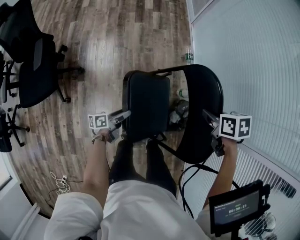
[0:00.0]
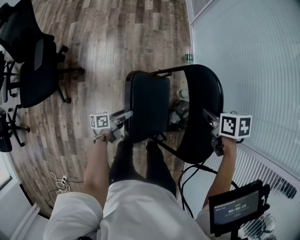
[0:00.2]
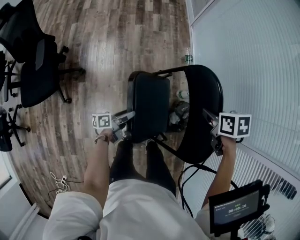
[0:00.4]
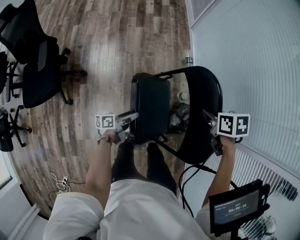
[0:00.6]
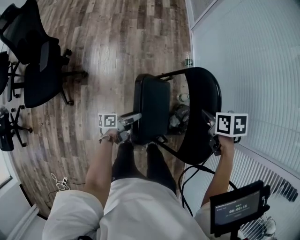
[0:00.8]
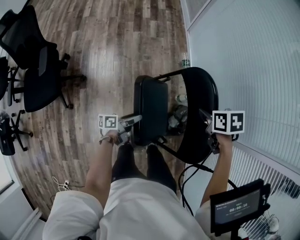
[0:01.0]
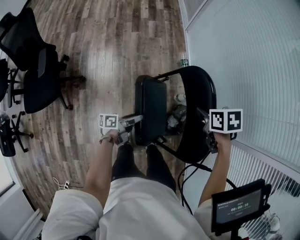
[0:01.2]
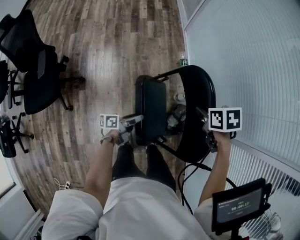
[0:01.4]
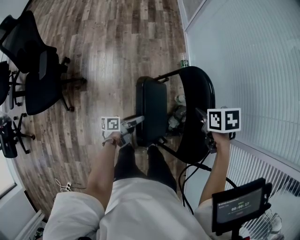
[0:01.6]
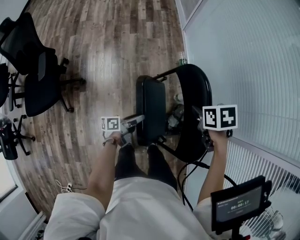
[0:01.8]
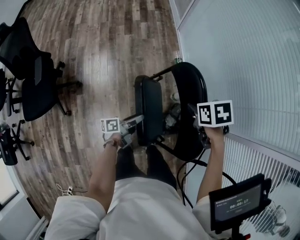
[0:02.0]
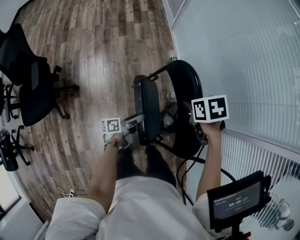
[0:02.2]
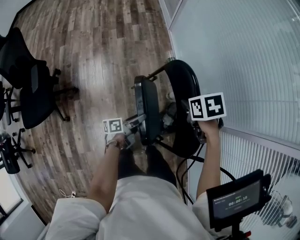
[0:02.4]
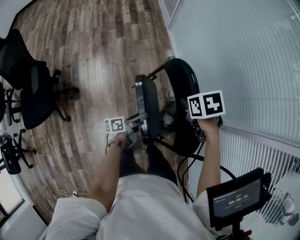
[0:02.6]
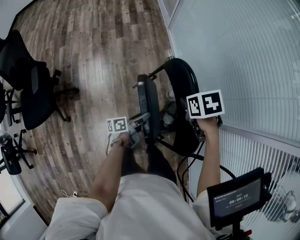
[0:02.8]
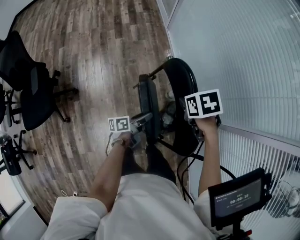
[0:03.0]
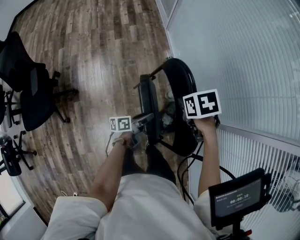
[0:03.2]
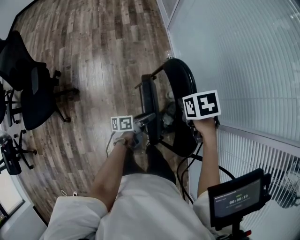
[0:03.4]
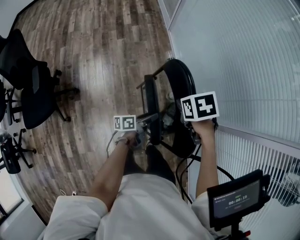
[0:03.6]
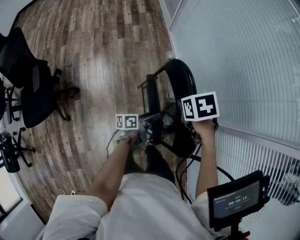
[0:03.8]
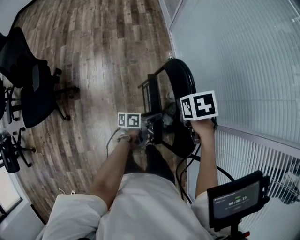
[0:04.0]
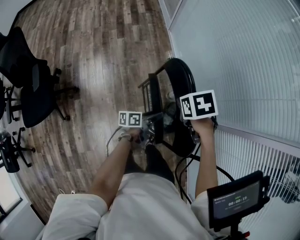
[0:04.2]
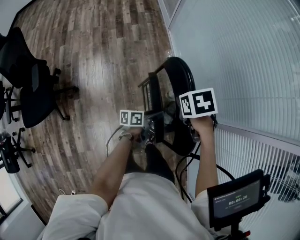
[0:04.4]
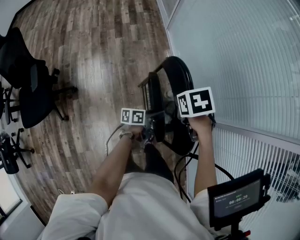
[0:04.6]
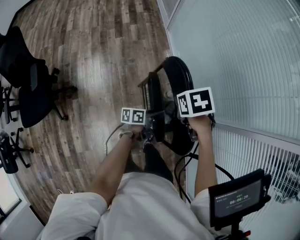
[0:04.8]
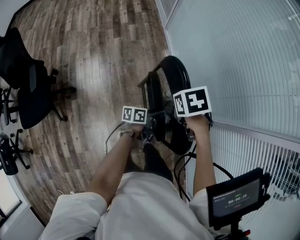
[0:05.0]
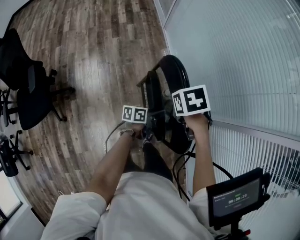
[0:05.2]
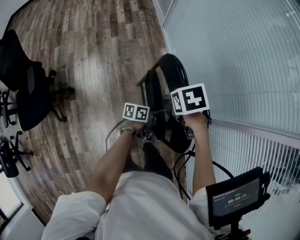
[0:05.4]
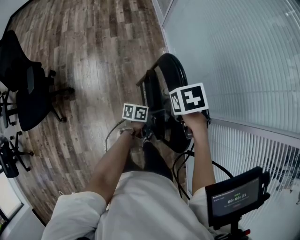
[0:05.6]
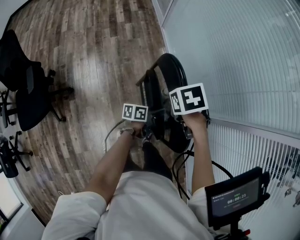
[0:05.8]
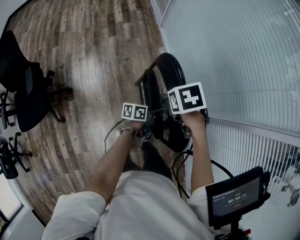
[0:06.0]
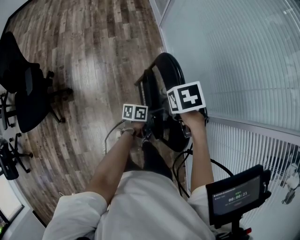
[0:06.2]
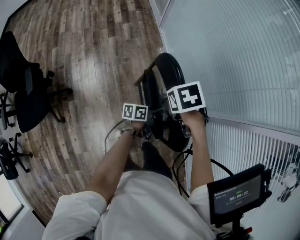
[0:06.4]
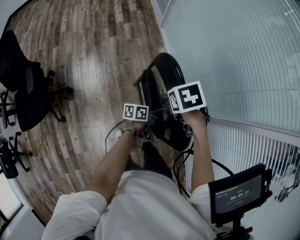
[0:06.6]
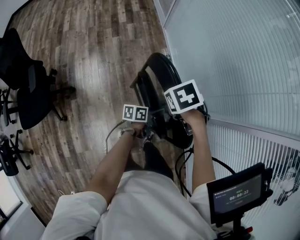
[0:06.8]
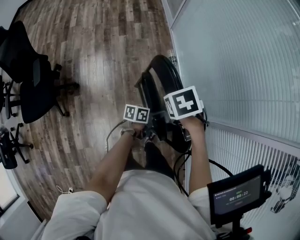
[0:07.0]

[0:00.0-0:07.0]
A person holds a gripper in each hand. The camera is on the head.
0:00.0 to 0:01.4: The left gripper moves to the right and upward, roughly 10 cm.
0:01.4 to 0:02.8: The left gripper is displaced to the right by about 5 cm.
0:02.8 to 0:04.2: The left gripper changes place by roughly 5 cm.
0:04.2 to 0:07.0: The grippers stay close to where they were, moving slightly.

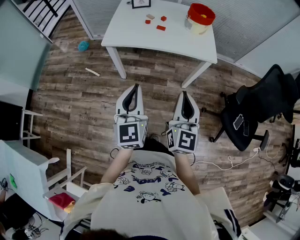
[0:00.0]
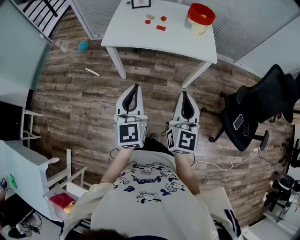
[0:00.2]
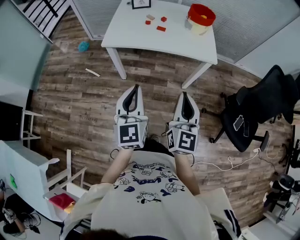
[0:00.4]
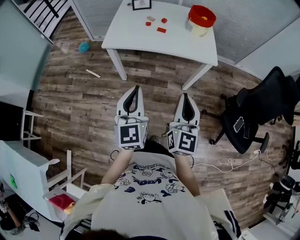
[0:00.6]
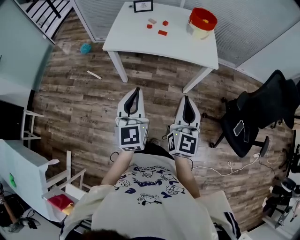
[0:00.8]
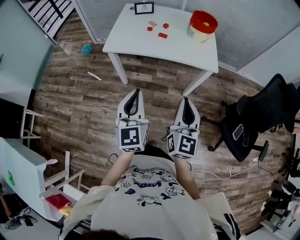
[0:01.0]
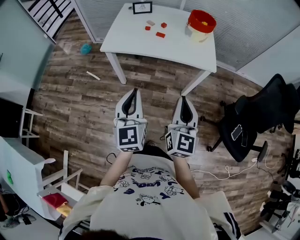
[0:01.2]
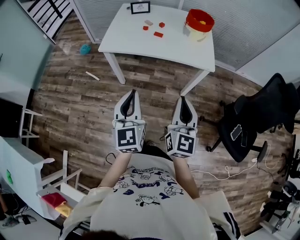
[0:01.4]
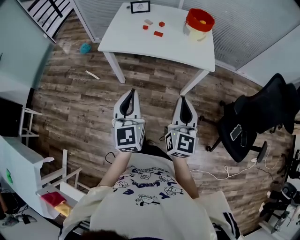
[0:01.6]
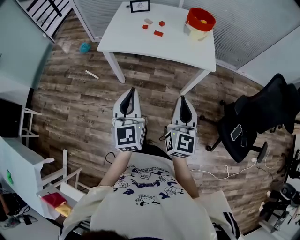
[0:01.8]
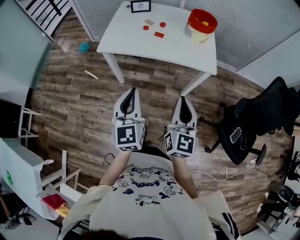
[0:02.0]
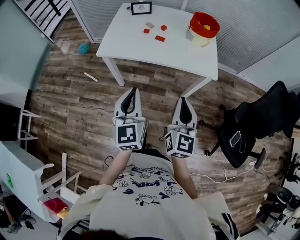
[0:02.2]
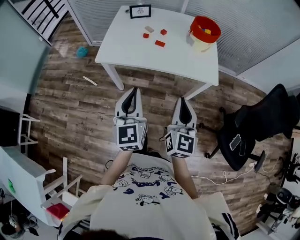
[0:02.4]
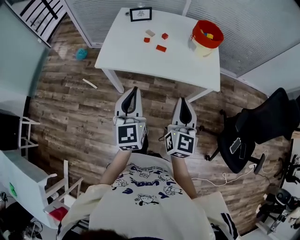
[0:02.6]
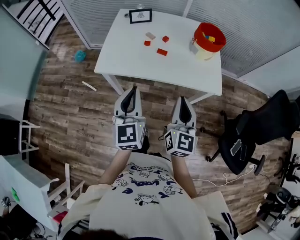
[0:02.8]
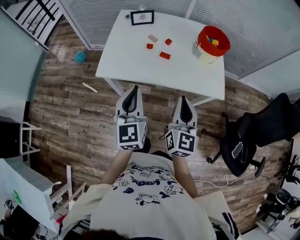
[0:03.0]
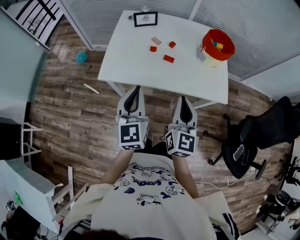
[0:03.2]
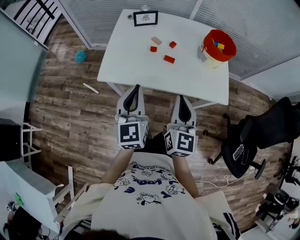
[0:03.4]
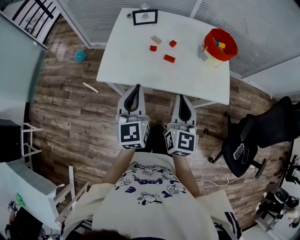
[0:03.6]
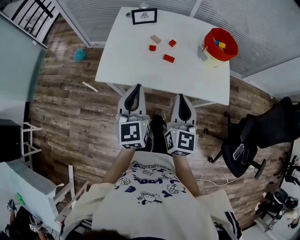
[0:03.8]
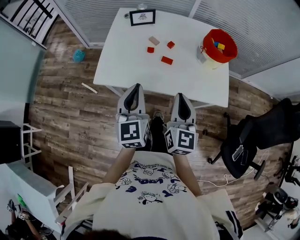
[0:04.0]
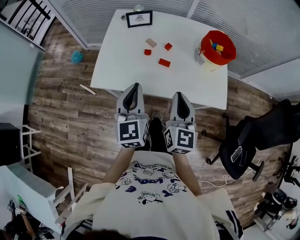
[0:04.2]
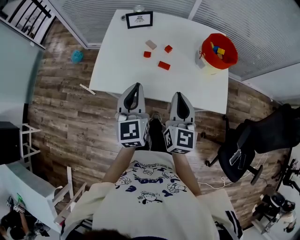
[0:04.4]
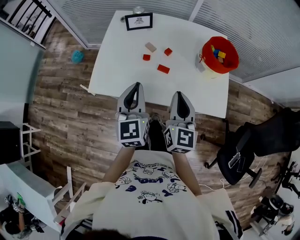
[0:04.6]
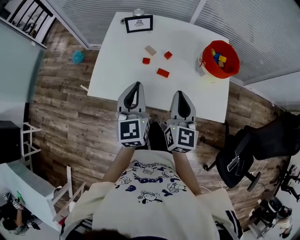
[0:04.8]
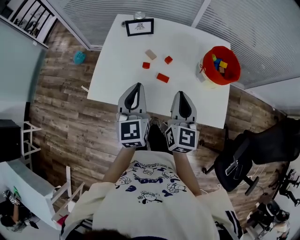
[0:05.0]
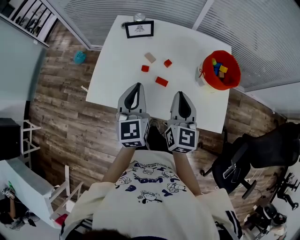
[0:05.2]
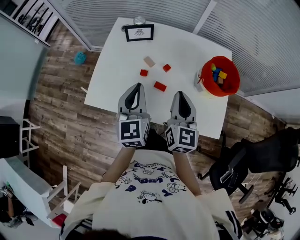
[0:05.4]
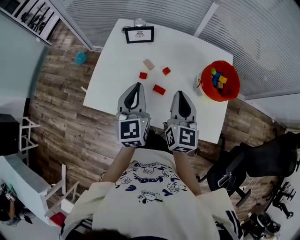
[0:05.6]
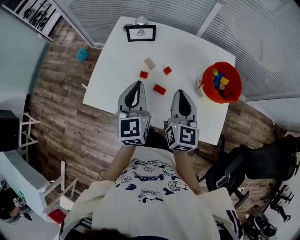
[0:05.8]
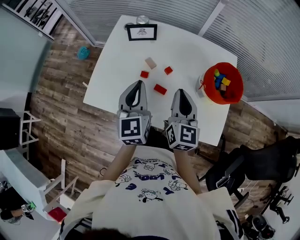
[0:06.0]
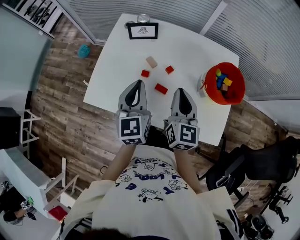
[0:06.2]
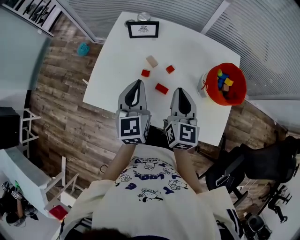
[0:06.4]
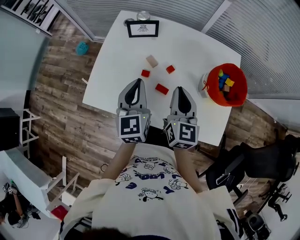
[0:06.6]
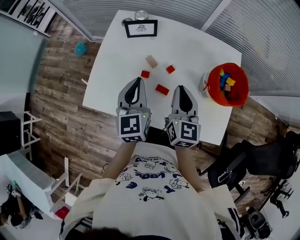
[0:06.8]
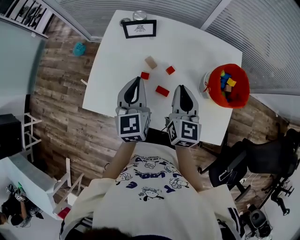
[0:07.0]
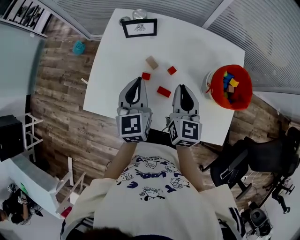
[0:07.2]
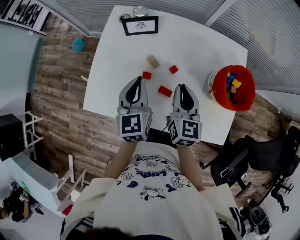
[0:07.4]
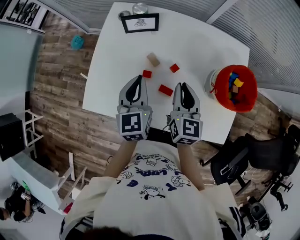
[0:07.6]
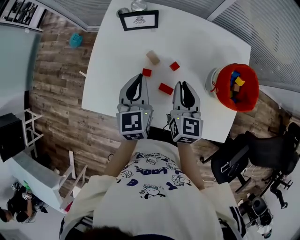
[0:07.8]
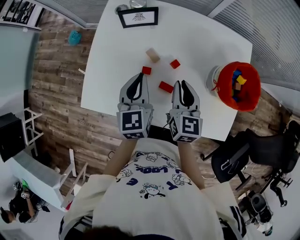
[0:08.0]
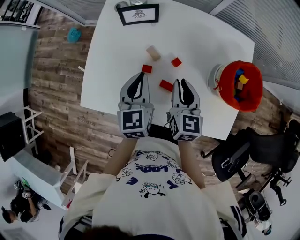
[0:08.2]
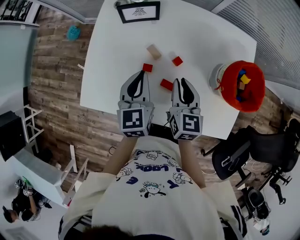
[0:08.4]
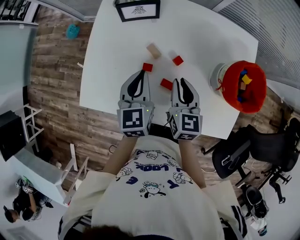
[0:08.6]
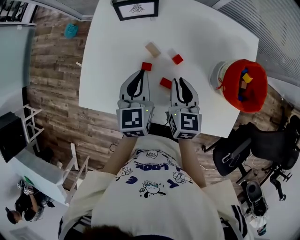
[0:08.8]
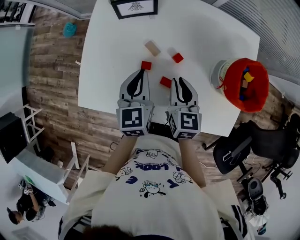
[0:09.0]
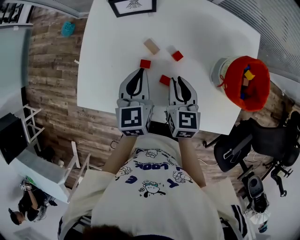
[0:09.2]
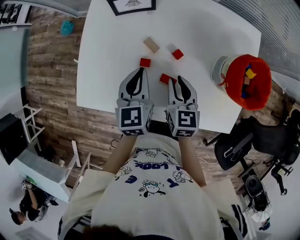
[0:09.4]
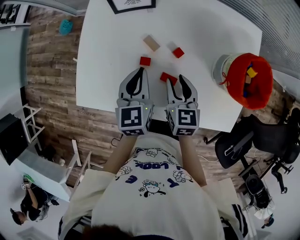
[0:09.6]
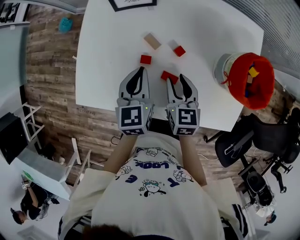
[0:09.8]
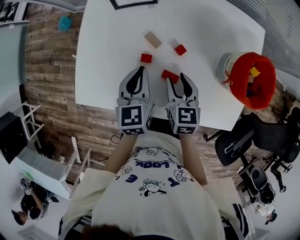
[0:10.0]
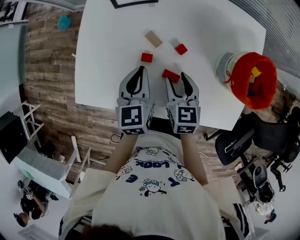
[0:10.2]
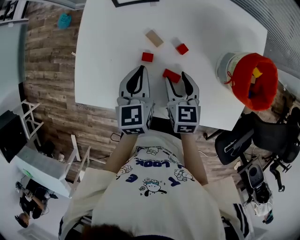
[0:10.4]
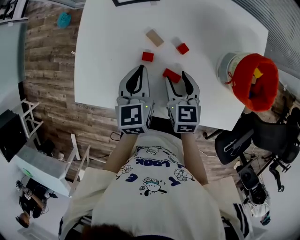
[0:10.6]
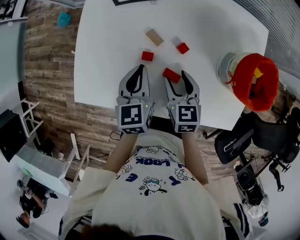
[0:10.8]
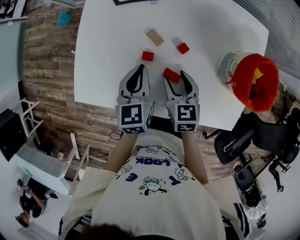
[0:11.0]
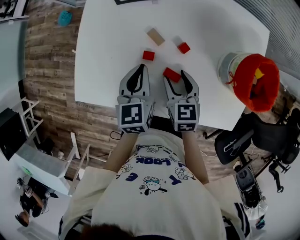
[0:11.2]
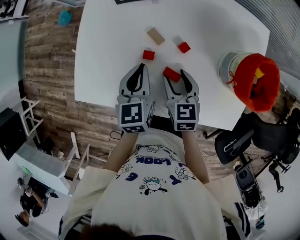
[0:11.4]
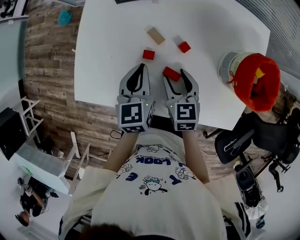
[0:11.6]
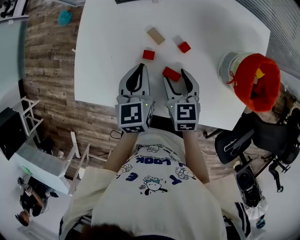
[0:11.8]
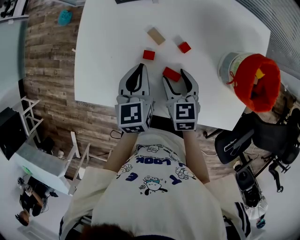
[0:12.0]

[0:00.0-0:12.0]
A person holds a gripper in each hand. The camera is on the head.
0:00.0 to 0:01.6: The right gripper ends up approximately 5 cm from where it was.
0:01.6 to 0:03.0: Both grippers travel together forward, about 20 cm.
0:03.0 to 0:04.4: The two grippers go roughly 10 cm forward.
0:04.4 to 0:06.0: Both grippers move forward, approximately 15 cm.
0:06.0 to 0:07.6: Both grippers move downward and forward, about 10 cm.
0:07.6 to 0:09.0: The grippers both shift downward by some 5 cm.
0:09.0 to 0:10.4: The right gripper opens.
0:10.4 to 0:12.0: The grippers stay close to where they were, moving slightly.

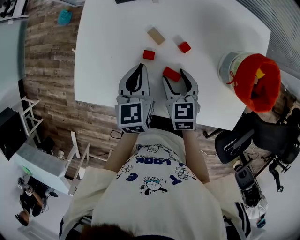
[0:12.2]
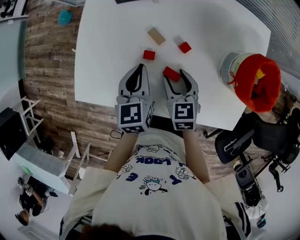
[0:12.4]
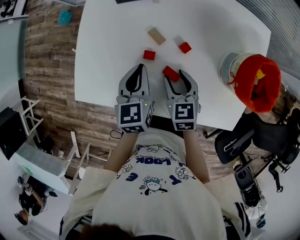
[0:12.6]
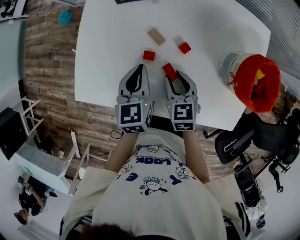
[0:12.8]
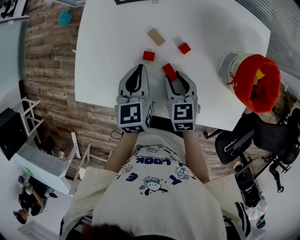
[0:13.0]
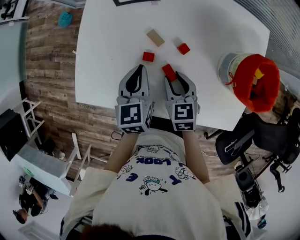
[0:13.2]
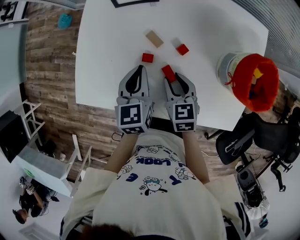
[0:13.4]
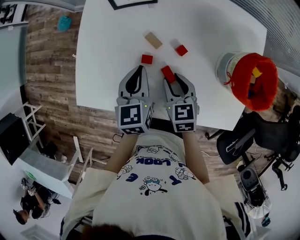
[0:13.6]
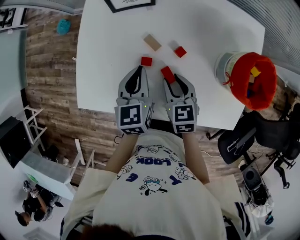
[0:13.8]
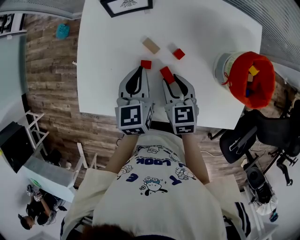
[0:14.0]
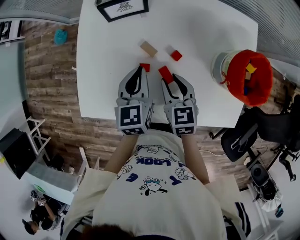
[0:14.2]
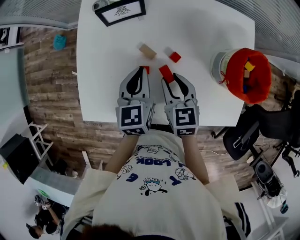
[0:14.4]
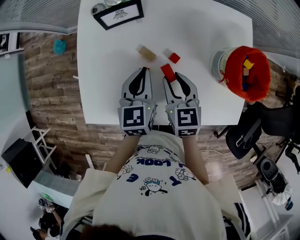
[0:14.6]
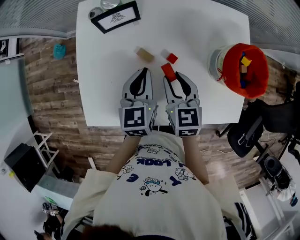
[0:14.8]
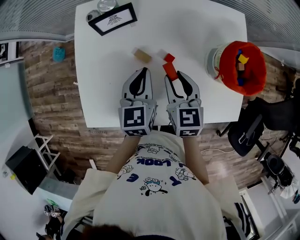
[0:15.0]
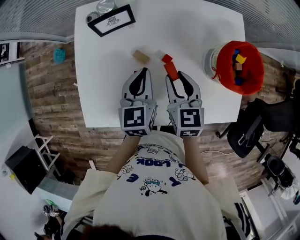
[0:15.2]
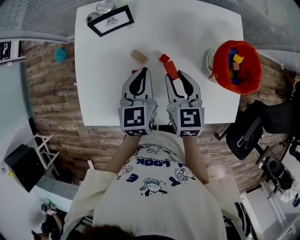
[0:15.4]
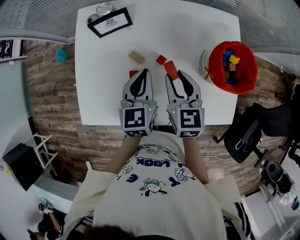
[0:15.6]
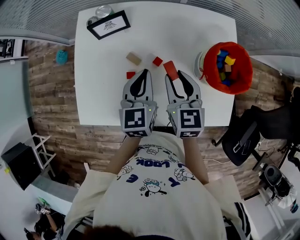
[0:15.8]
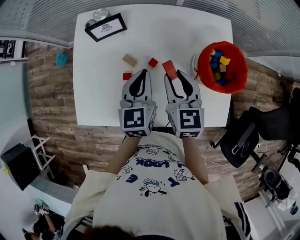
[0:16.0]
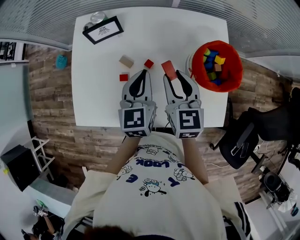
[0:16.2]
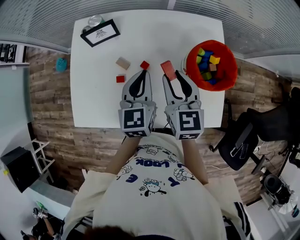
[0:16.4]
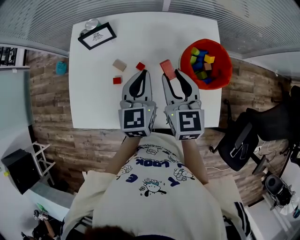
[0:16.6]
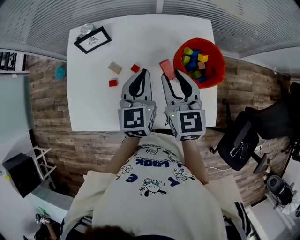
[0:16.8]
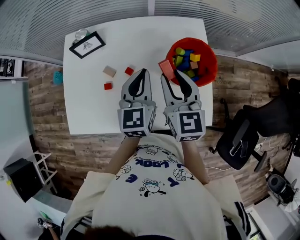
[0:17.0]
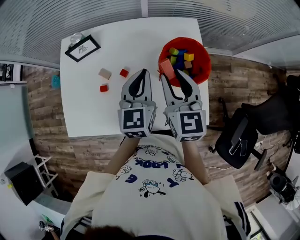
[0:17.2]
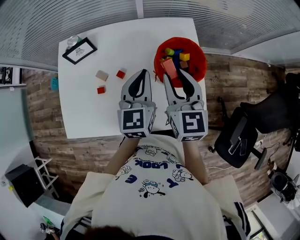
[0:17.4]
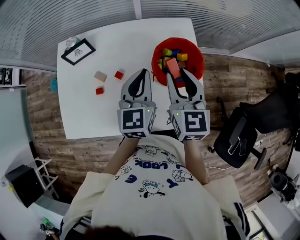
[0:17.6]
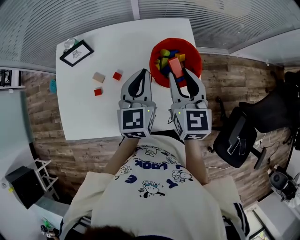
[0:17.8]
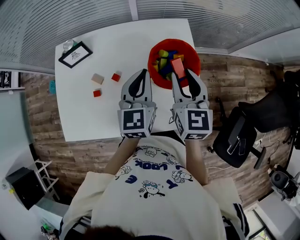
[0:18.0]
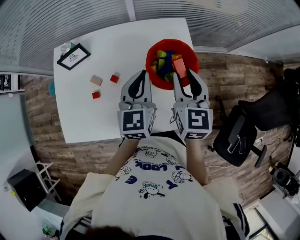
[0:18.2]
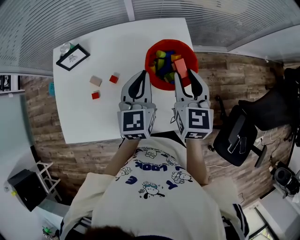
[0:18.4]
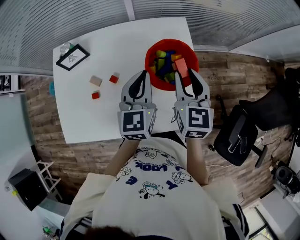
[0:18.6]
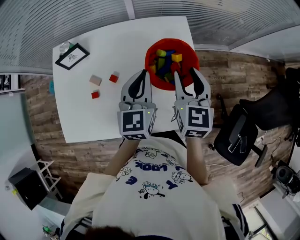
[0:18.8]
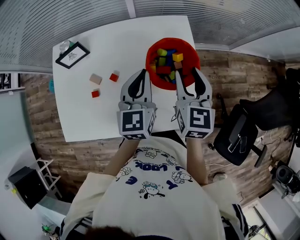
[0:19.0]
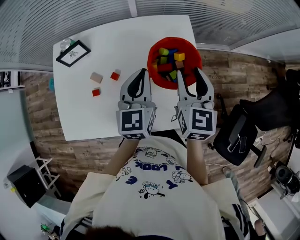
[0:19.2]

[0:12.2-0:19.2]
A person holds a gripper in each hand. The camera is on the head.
0:12.2 to 0:13.6: The right gripper closes.
0:13.6 to 0:15.0: The left gripper moves approximately 5 cm. Meanwhile the right gripper goes some 10 cm upward, and turns by about 20 degrees.
0:15.0 to 0:16.4: The right gripper goes some 10 cm upward and to the right, while the left gripper shifts roughly 10 cm to the right and upward.
0:16.4 to 0:17.8: The two grippers go some 15 cm to the right.
0:17.8 to 0:19.2: The grippers stay close to where they were, moving slightly.
